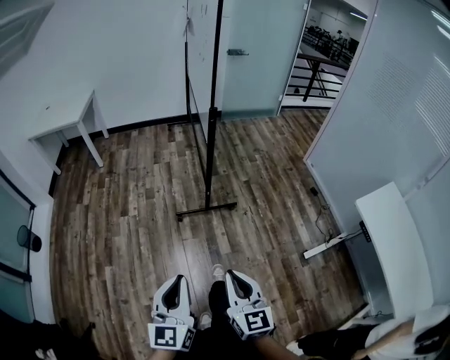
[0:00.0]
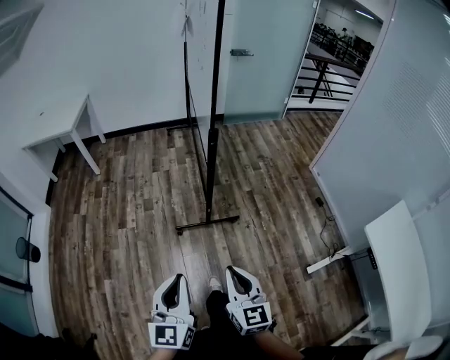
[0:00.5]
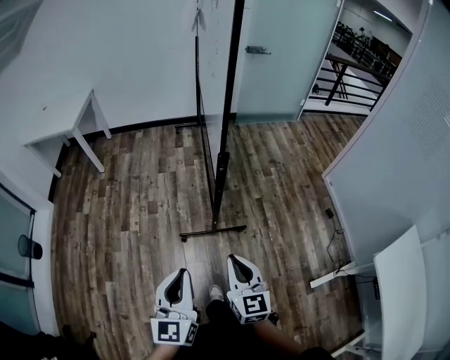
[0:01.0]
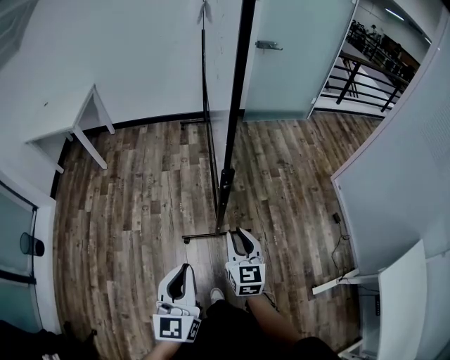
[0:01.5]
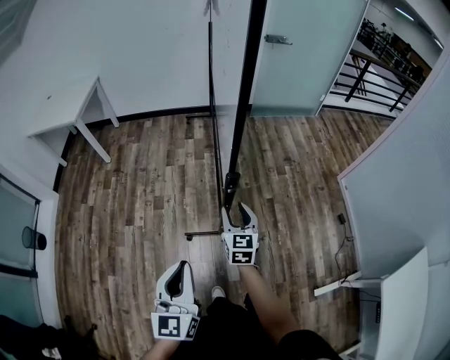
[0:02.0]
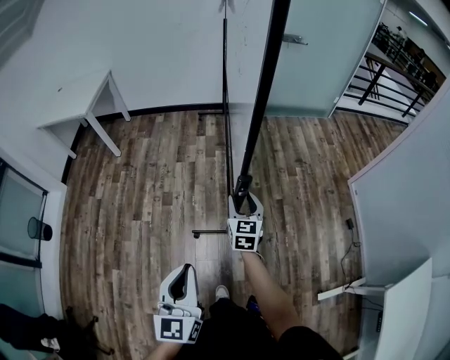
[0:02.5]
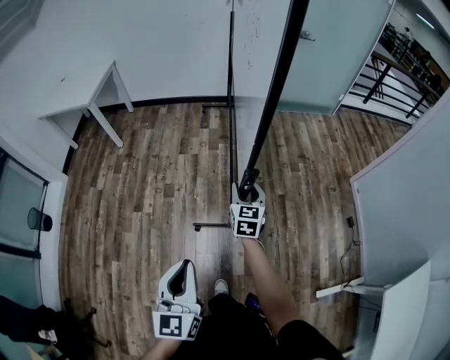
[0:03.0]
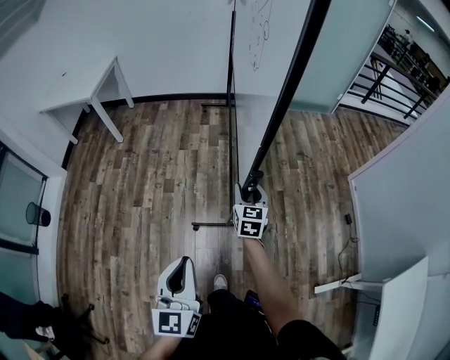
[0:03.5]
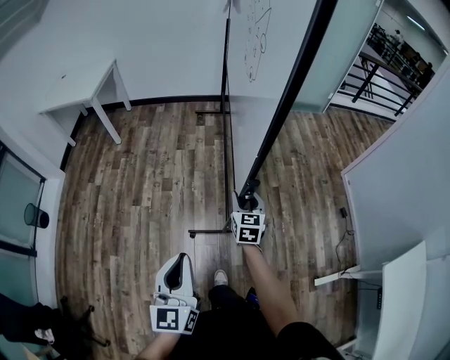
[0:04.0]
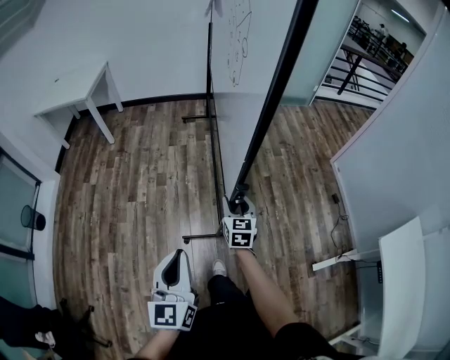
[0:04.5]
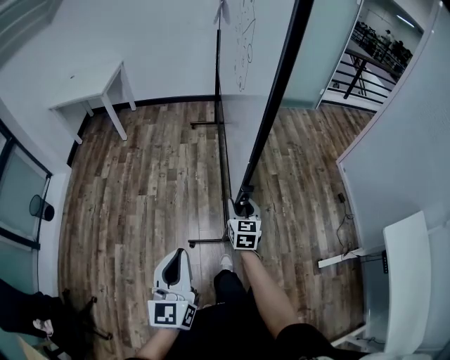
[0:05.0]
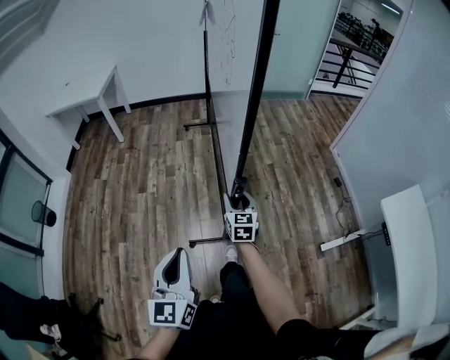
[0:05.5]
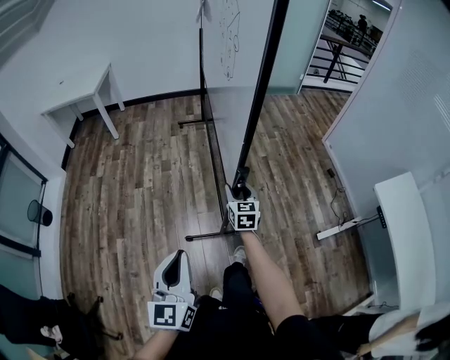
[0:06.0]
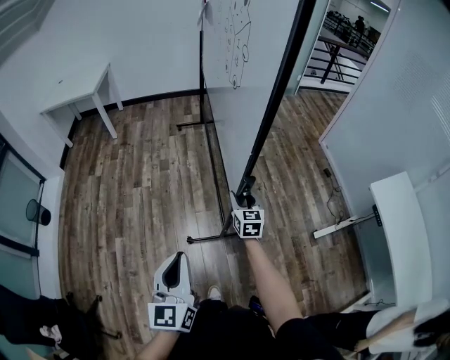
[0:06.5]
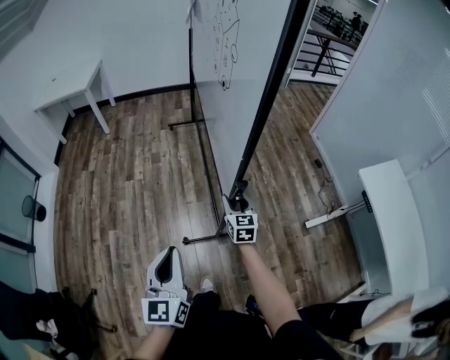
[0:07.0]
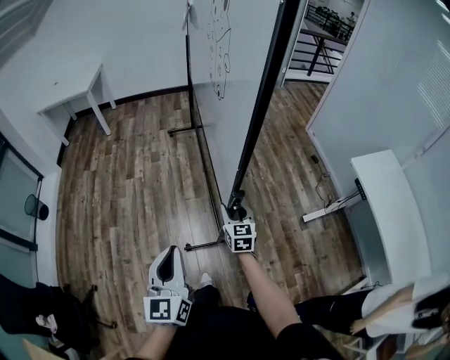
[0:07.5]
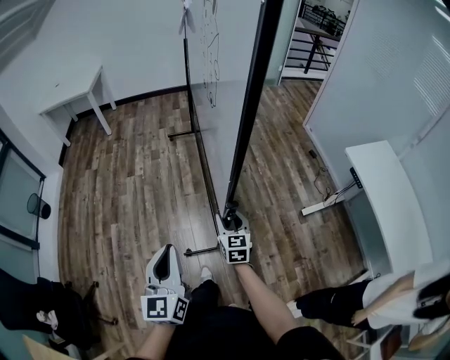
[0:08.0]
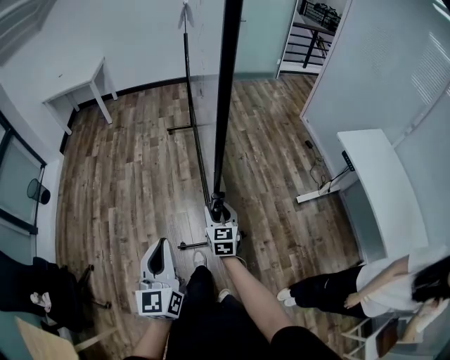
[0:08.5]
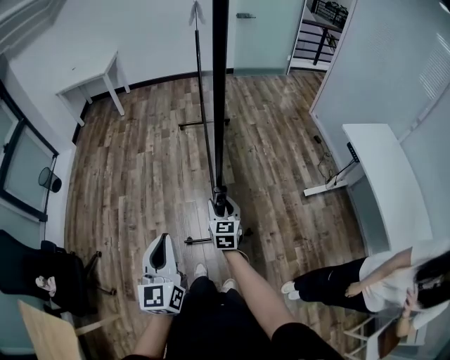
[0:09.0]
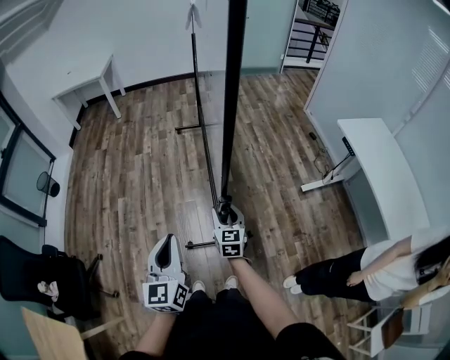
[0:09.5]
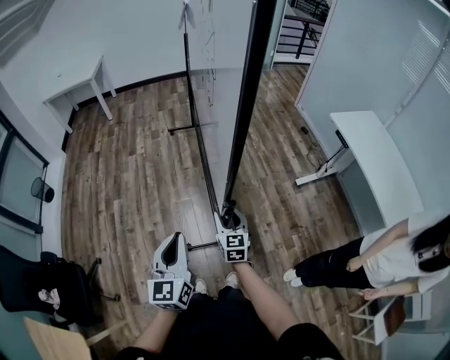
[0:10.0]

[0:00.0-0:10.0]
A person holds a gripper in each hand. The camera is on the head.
0:00.0 to 0:02.0: The two grippers travel together, forward, roughly 50 cm. The right gripper opens up.
0:02.0 to 0:04.0: The left gripper heads backward and to the left, covering roughly 10 cm. The right gripper goes some 5 cm backward.
0:04.0 to 0:06.0: Both grippers travel together backward, approximately 35 cm.
0:06.0 to 0:08.0: The right gripper goes approximately 35 cm backward; the left gripper moves backward, some 20 cm.
0:08.0 to 0:10.0: Both grippers move backward, about 20 cm.

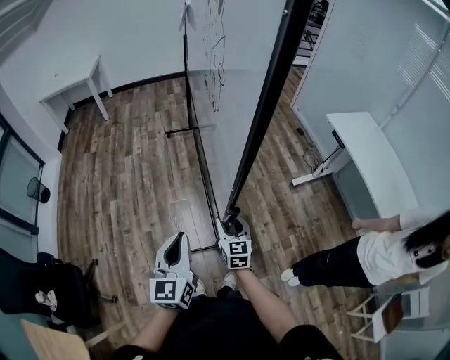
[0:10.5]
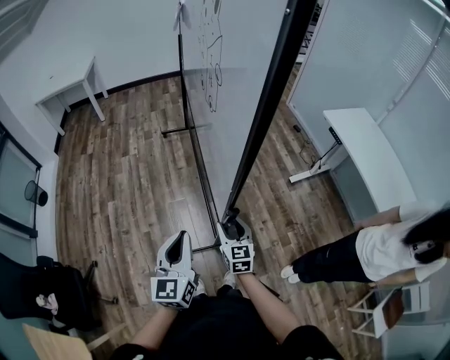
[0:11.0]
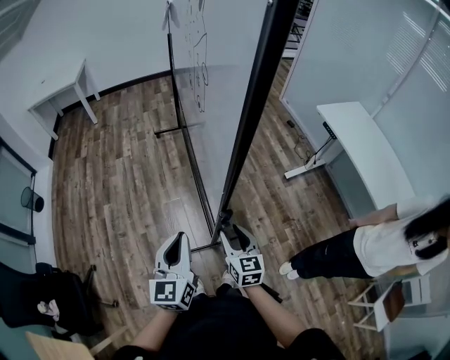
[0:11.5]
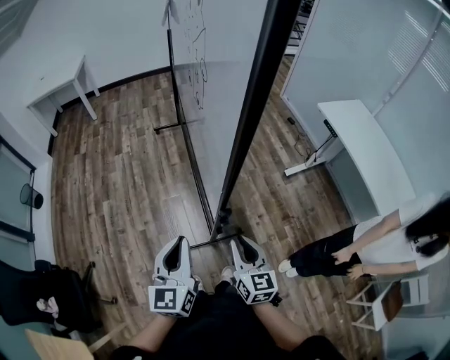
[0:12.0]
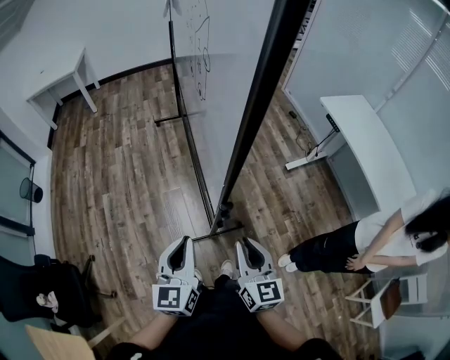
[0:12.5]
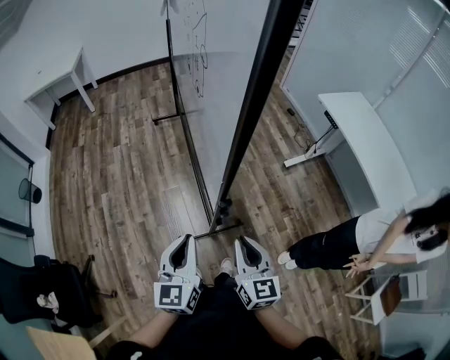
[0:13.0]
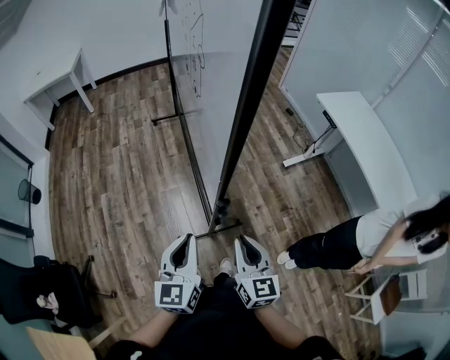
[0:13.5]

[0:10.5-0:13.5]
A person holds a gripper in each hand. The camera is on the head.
0:10.5 to 0:12.0: The right gripper moves backward and upward, about 15 cm, and closes.
0:12.0 to 0:13.5: The grippers stay close to where they were, moving slightly.

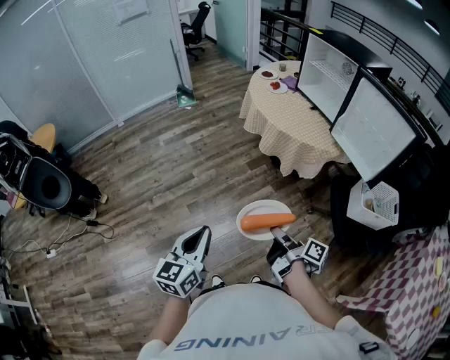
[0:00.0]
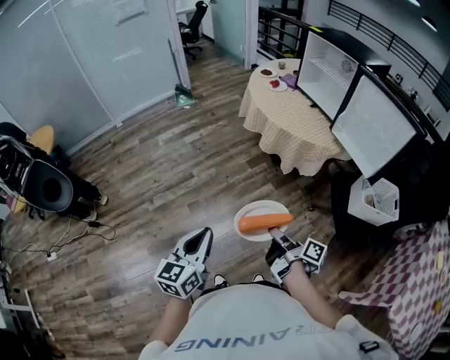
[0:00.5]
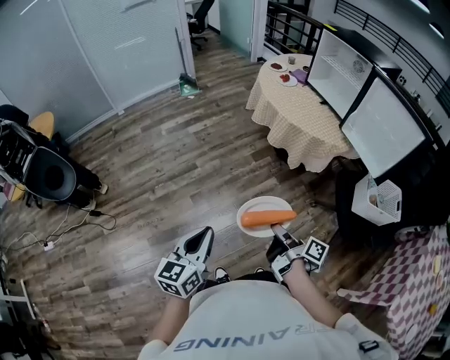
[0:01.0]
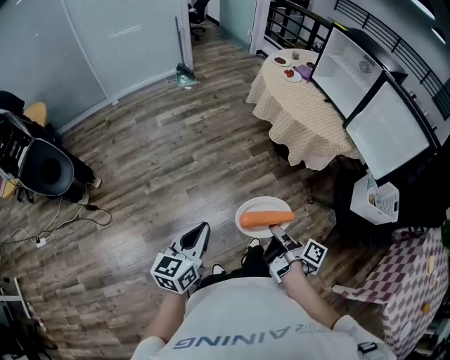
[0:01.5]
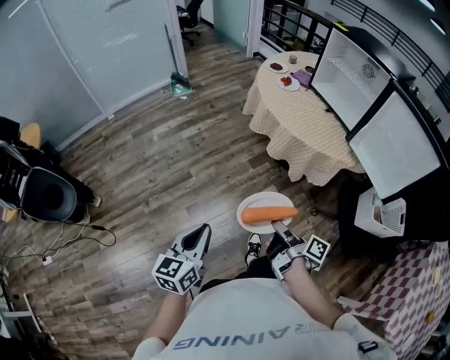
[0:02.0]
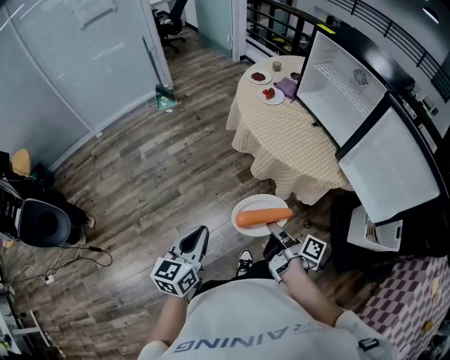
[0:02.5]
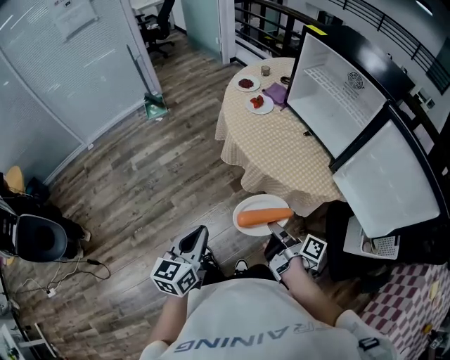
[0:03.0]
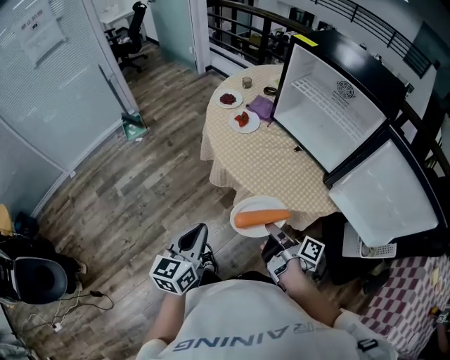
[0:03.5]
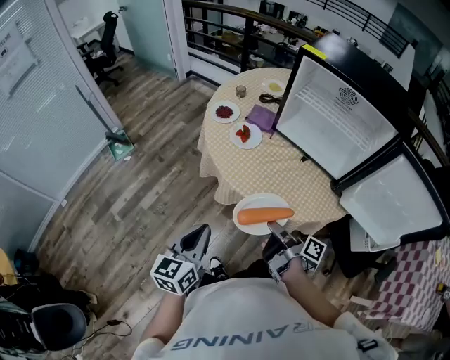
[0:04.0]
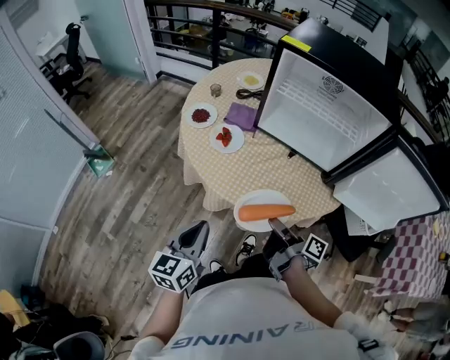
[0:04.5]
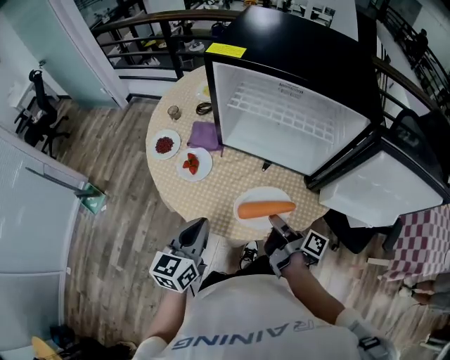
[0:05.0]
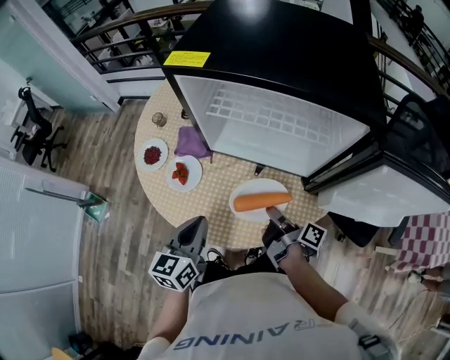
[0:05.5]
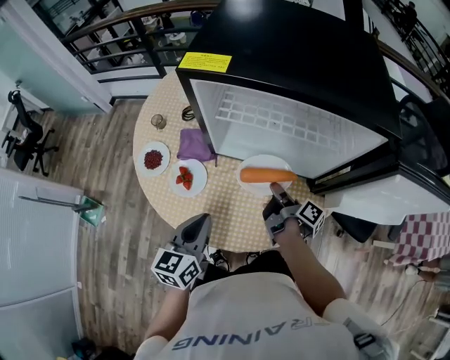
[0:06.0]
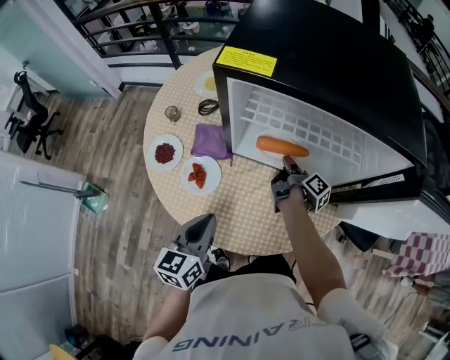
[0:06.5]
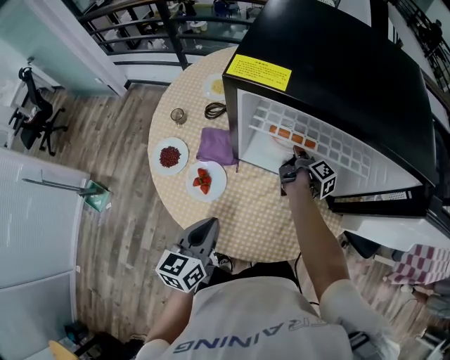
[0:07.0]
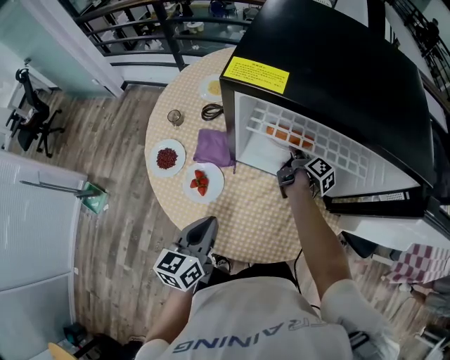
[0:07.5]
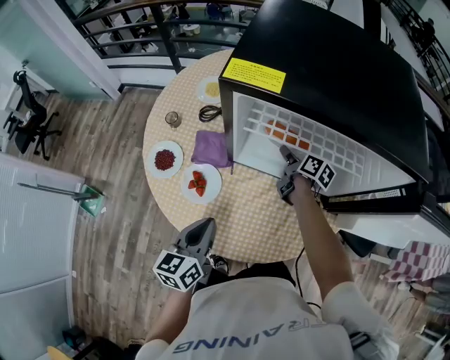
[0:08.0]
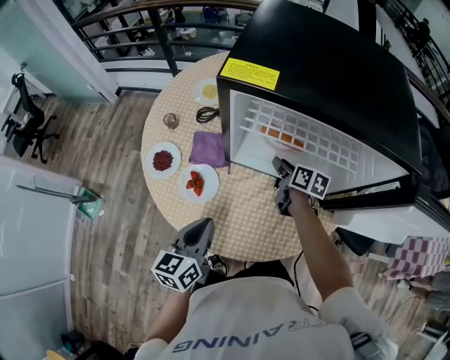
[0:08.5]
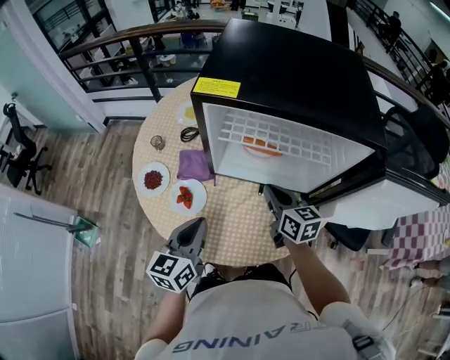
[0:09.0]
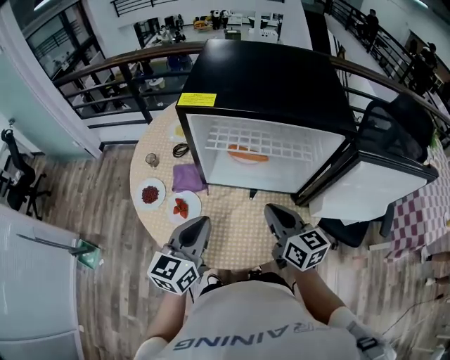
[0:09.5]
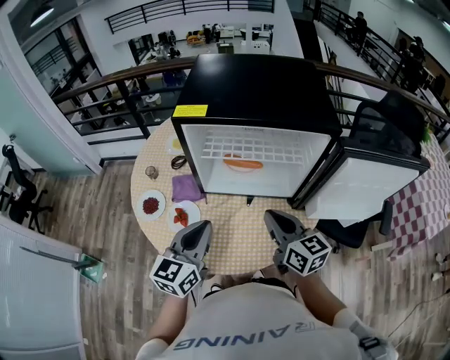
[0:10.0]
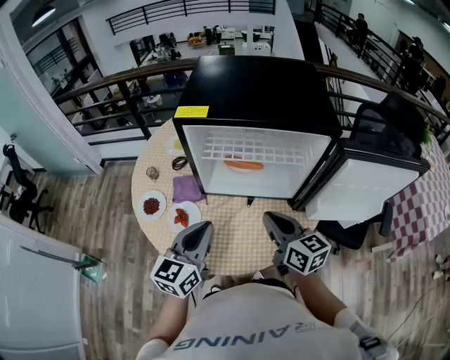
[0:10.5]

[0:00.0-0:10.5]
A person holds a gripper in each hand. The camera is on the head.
0:00.0 to 0:02.0: The left gripper shifts by approximately 15 cm.
0:02.0 to 0:04.0: The left gripper ends up about 50 cm from where it was, and turns by roughly 20 degrees.
0:04.0 to 0:06.5: The left gripper ends up about 30 cm from where it was, and changes its angle by approximately 20 degrees.
0:08.5 to 0:10.5: The left gripper moves upward, approximately 10 cm, and changes its angle by some 30 degrees.

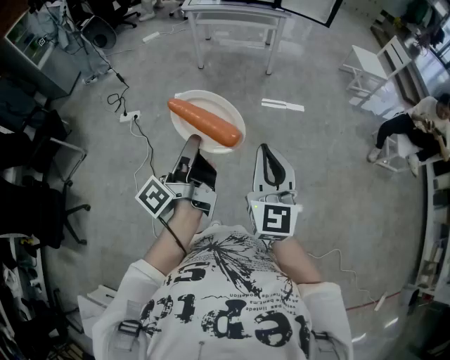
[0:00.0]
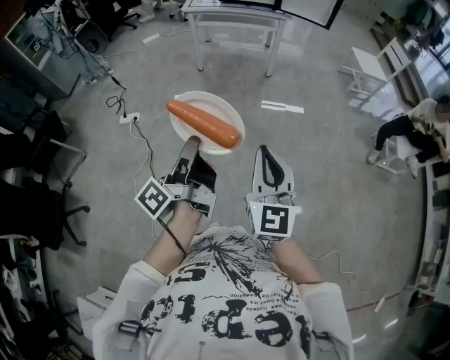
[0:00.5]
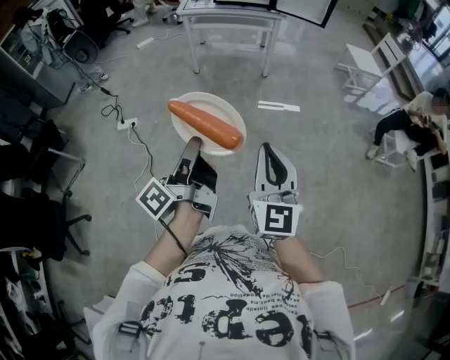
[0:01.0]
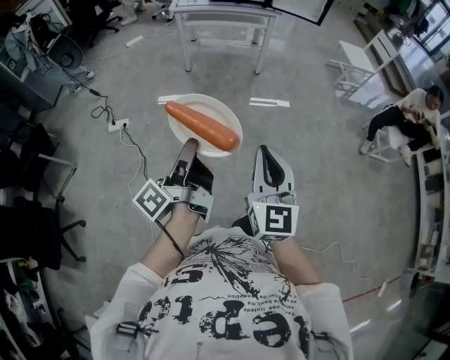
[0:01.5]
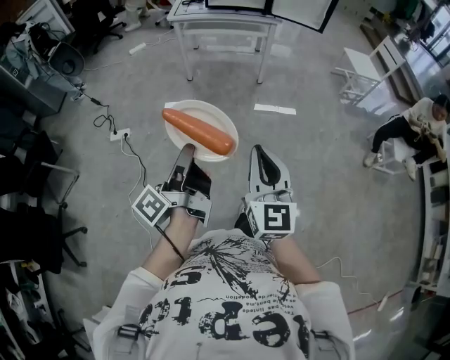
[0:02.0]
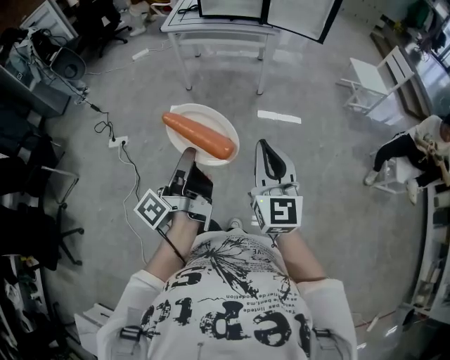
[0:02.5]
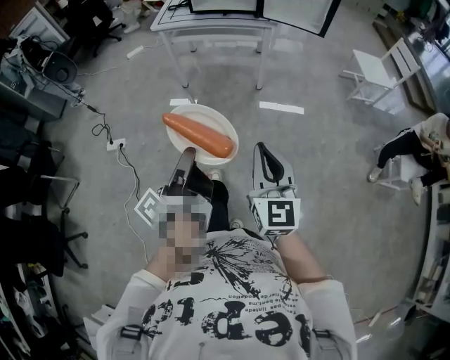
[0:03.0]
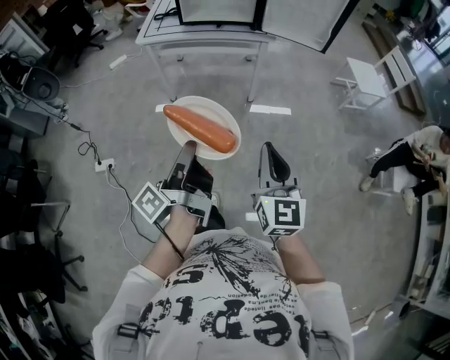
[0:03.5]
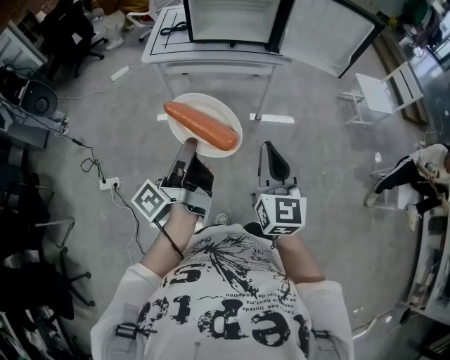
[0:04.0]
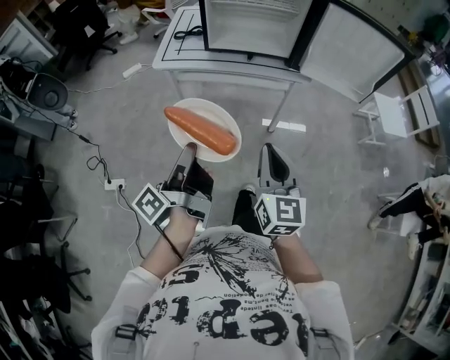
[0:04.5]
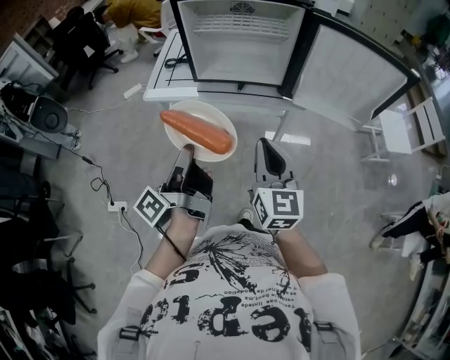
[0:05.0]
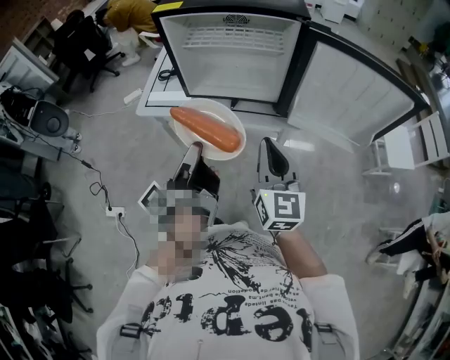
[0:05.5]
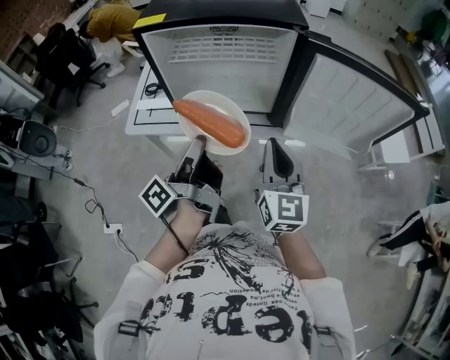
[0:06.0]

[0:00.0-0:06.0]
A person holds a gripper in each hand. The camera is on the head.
0:00.0 to 0:02.0: The right gripper changes place by roughly 10 cm.
0:02.0 to 0:04.0: The right gripper ends up roughly 50 cm from where it was.
0:04.0 to 0:06.0: The right gripper changes place by approximately 40 cm.
